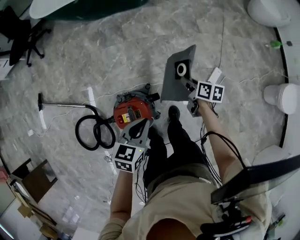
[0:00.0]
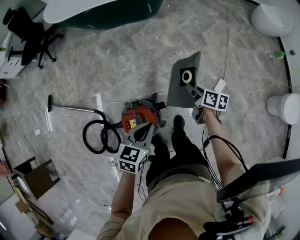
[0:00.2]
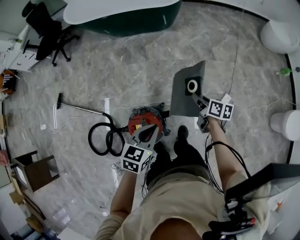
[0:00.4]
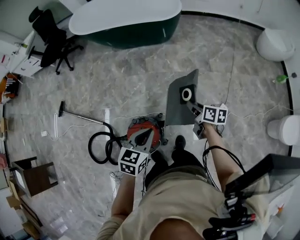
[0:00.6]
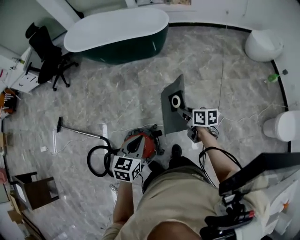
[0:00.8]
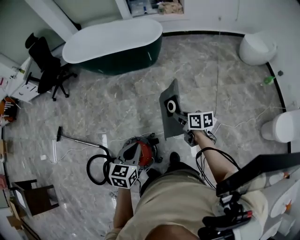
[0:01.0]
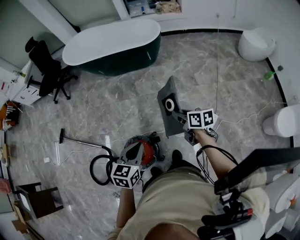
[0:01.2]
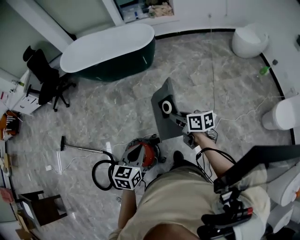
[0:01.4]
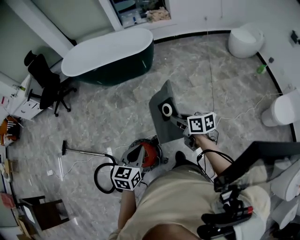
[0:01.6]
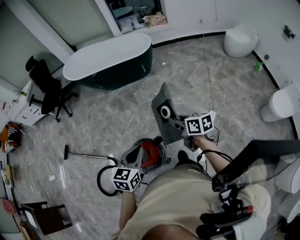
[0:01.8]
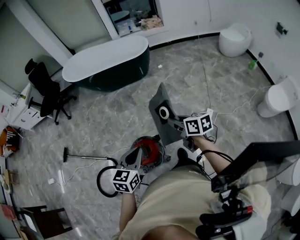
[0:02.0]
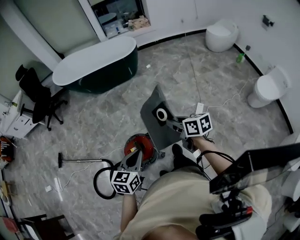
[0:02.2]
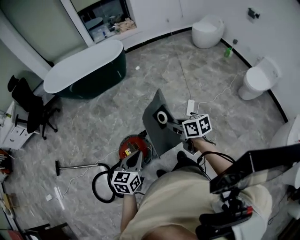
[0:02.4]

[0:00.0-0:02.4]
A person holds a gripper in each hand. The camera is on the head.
0:00.0 to 0:01.2: The two grippers go approximately 20 cm upward. The right gripper rotates approximately 20 degrees.
0:01.2 to 0:02.4: The two grippers go about 25 cm backward.

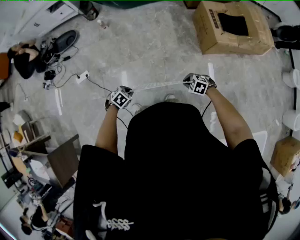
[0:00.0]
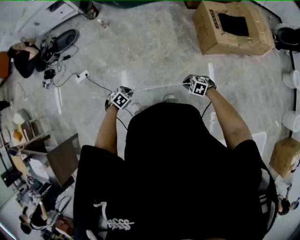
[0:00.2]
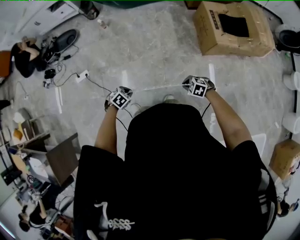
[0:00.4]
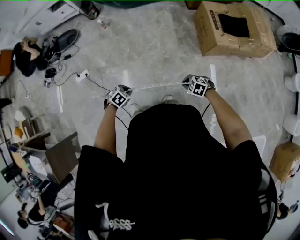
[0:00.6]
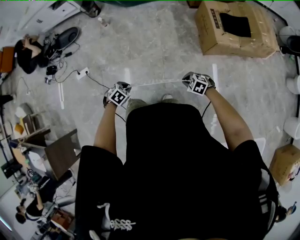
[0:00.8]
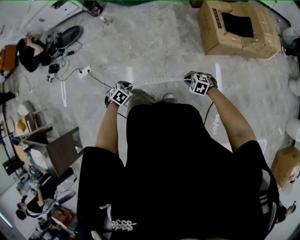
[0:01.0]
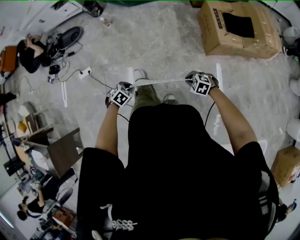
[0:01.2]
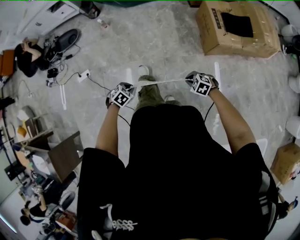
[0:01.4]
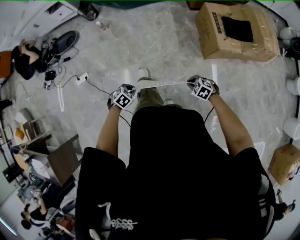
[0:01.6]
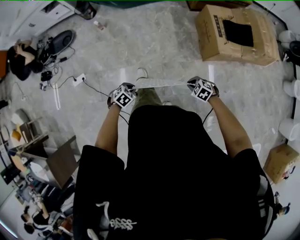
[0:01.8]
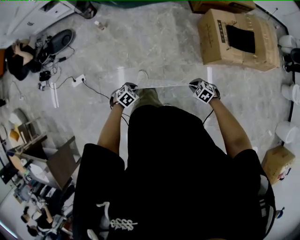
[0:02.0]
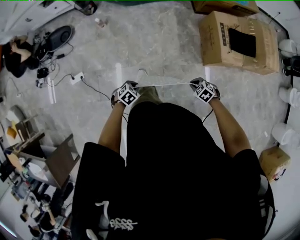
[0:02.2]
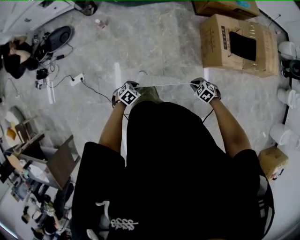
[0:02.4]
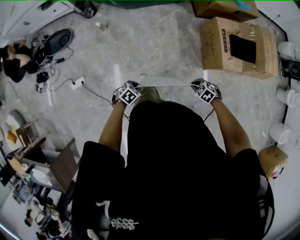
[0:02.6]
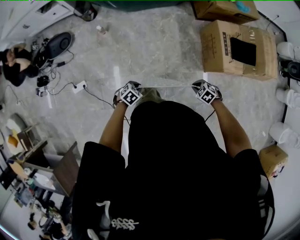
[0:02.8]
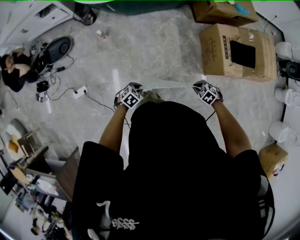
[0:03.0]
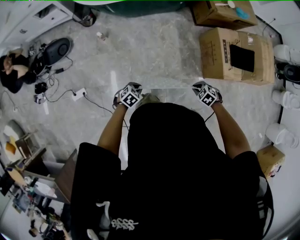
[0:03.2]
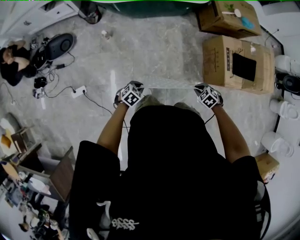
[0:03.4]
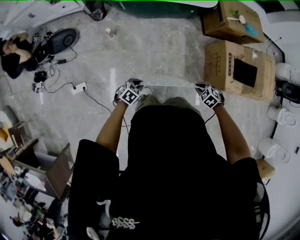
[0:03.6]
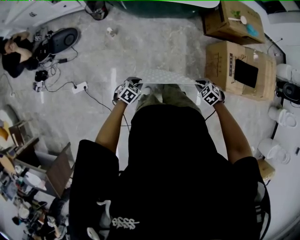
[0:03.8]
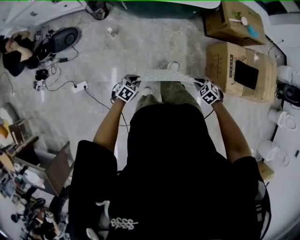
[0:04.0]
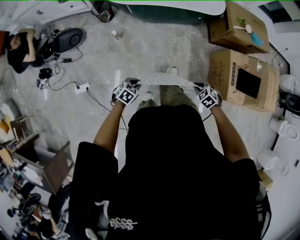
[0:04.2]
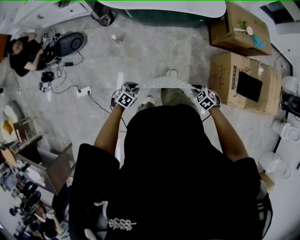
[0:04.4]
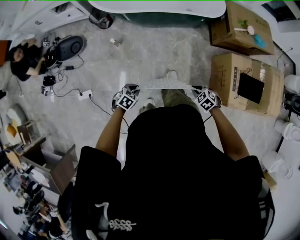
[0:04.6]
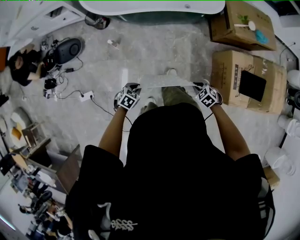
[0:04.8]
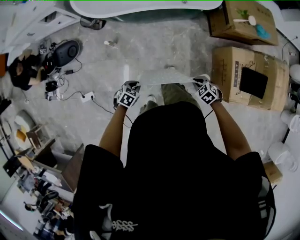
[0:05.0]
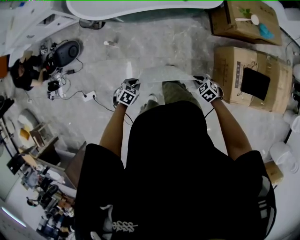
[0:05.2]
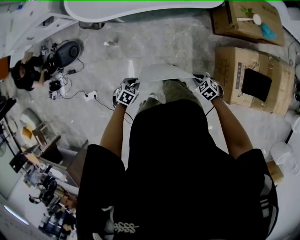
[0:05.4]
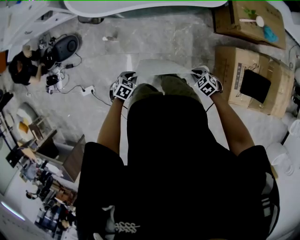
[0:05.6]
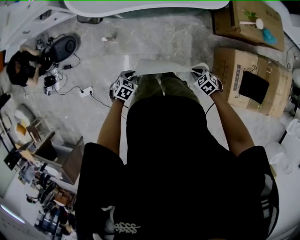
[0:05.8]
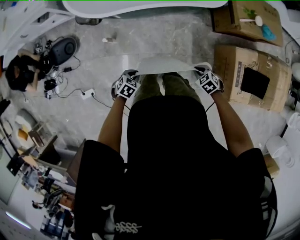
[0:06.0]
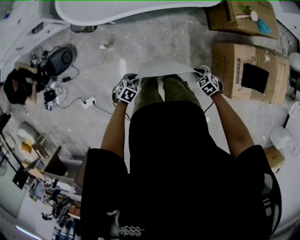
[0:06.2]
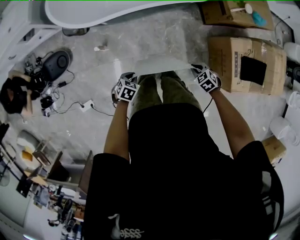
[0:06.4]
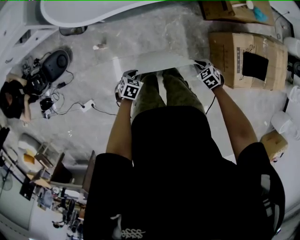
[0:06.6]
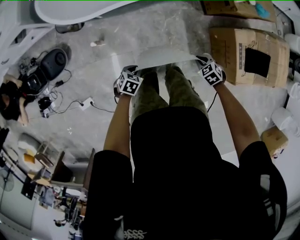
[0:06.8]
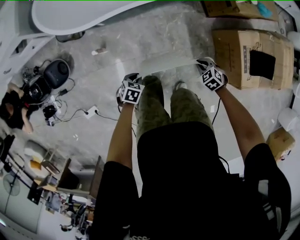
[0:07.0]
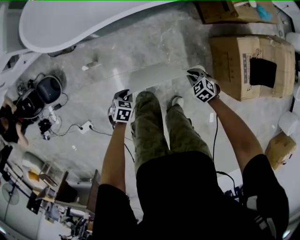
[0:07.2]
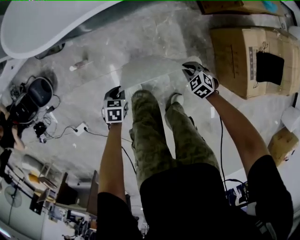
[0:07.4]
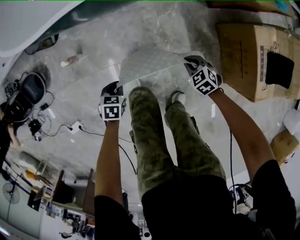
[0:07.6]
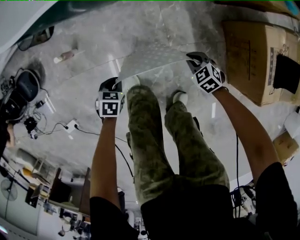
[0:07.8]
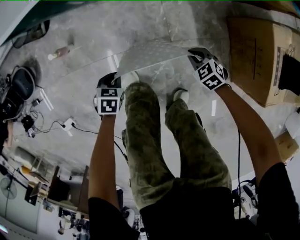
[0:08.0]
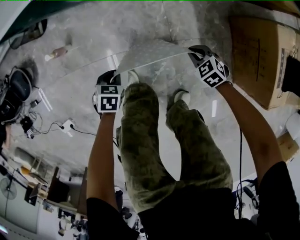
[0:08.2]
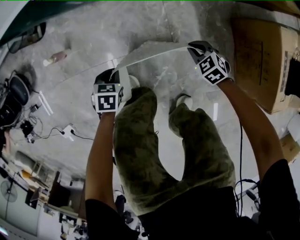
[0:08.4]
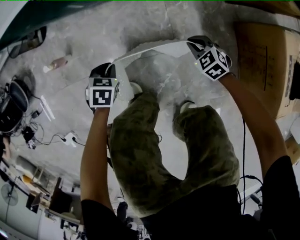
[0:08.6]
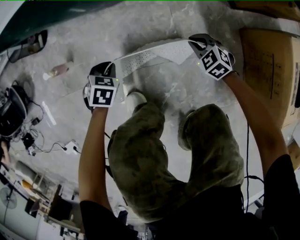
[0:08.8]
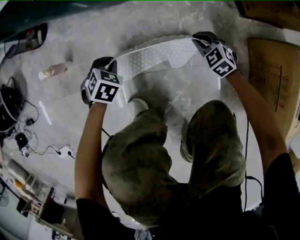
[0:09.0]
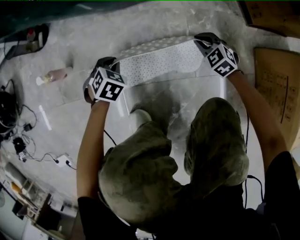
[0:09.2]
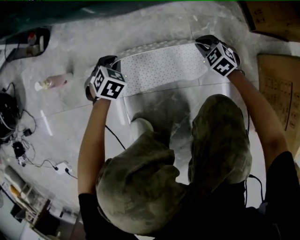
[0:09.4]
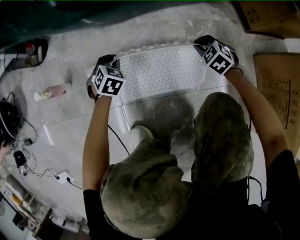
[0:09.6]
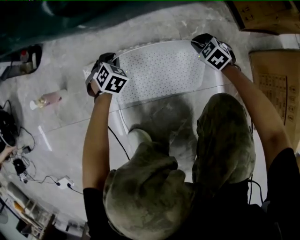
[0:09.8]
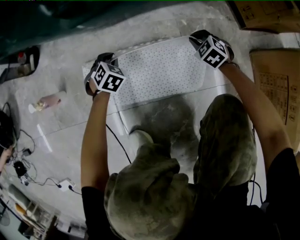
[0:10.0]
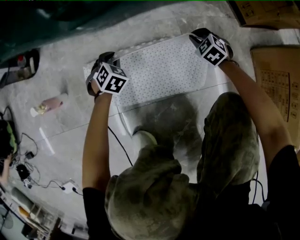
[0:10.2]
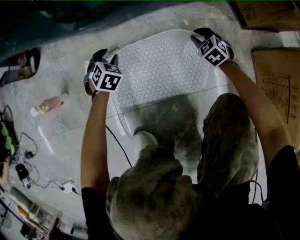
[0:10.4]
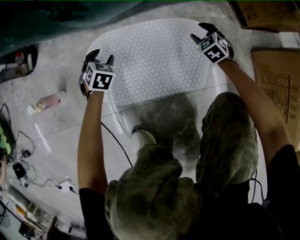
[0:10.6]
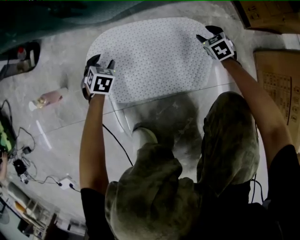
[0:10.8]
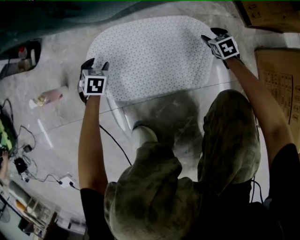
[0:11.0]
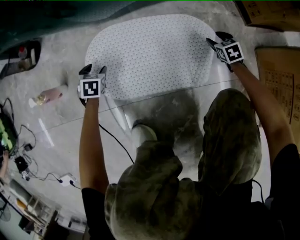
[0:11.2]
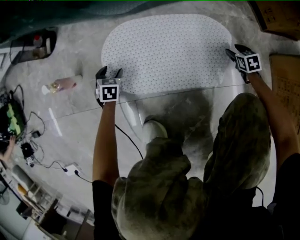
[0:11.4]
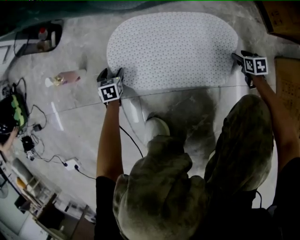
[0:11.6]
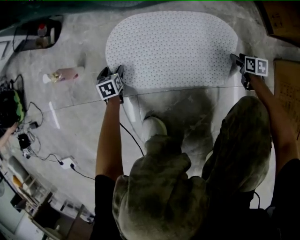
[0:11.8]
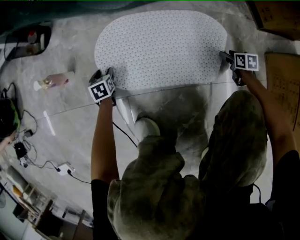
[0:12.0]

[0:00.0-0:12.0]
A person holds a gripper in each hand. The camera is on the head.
0:00.0 to 0:01.6: The left gripper ends up approximately 15 cm from where it was. Meanwhile the right gripper changes place by some 15 cm.
0:01.6 to 0:03.0: The right gripper ends up some 35 cm from where it was. Meanwhile the left gripper changes place by some 35 cm.
0:03.0 to 0:04.4: The right gripper ends up about 20 cm from where it was, while the left gripper shifts by roughly 15 cm.
0:04.4 to 0:06.0: Both grippers travel together forward, some 25 cm.
0:06.0 to 0:07.6: Both grippers move downward, roughly 40 cm.
0:07.6 to 0:09.0: The two grippers go roughly 35 cm downward and forward. The left gripper changes its angle by some 30 degrees.
0:09.0 to 0:10.4: The right gripper heads downward and forward, covering roughly 15 cm. Meanwhile the left gripper moves forward and downward, some 20 cm, and opens.
0:10.4 to 0:12.0: The left gripper travels to the left, backward and downward by approximately 20 cm, and twists about 50 degrees counterclockwise, seen from behind. Meanwhile the right gripper heads to the right, backward and downward, covering roughly 20 cm, twists about 60 degrees clockwise, seen from behind, and opens its fingers.

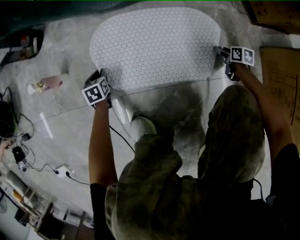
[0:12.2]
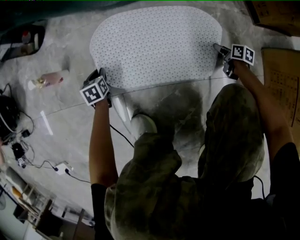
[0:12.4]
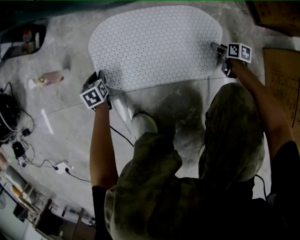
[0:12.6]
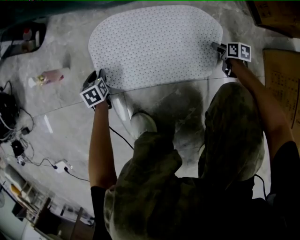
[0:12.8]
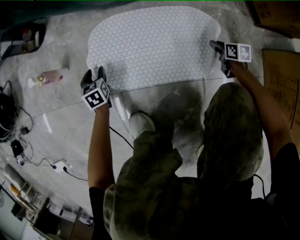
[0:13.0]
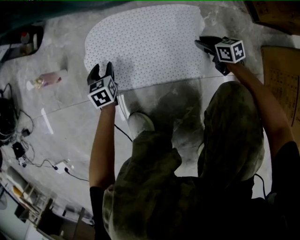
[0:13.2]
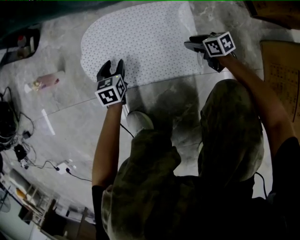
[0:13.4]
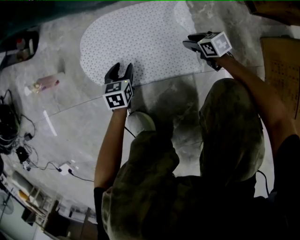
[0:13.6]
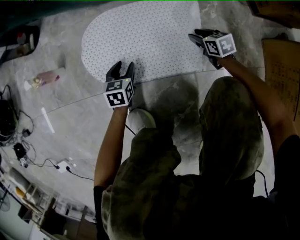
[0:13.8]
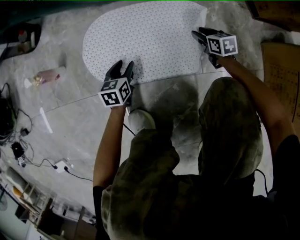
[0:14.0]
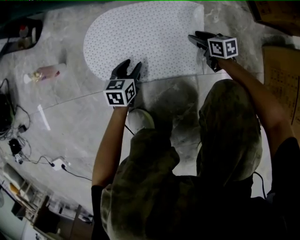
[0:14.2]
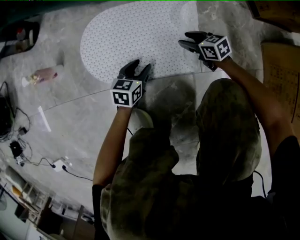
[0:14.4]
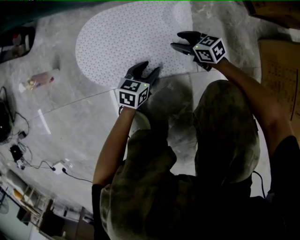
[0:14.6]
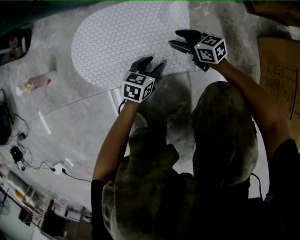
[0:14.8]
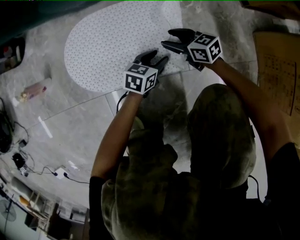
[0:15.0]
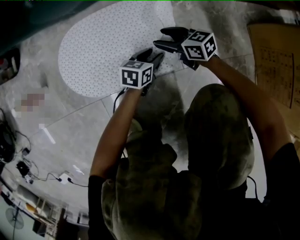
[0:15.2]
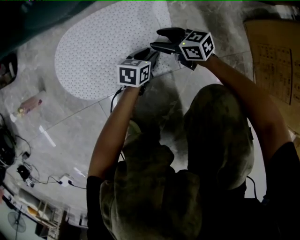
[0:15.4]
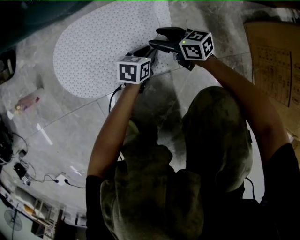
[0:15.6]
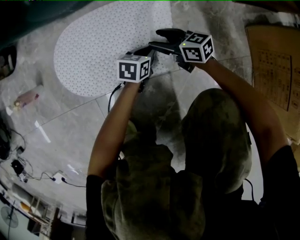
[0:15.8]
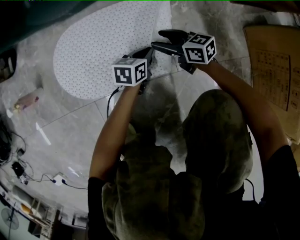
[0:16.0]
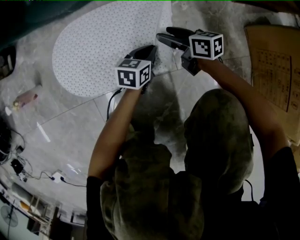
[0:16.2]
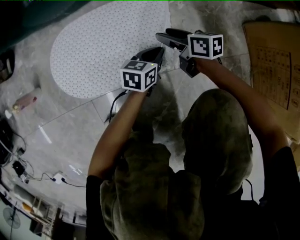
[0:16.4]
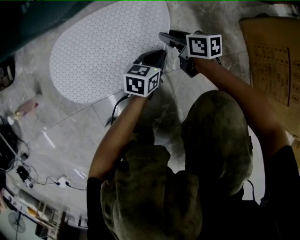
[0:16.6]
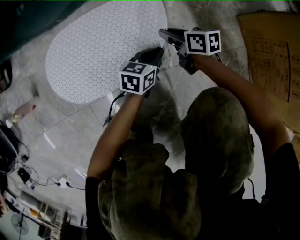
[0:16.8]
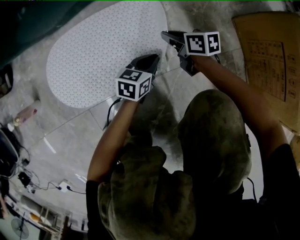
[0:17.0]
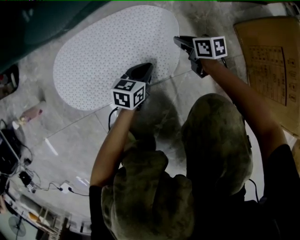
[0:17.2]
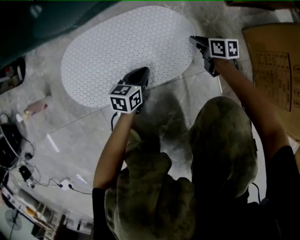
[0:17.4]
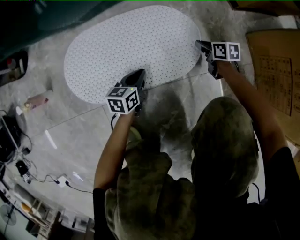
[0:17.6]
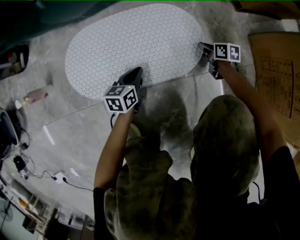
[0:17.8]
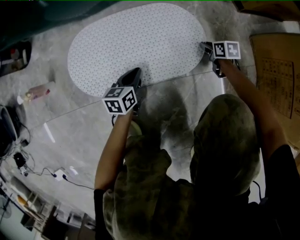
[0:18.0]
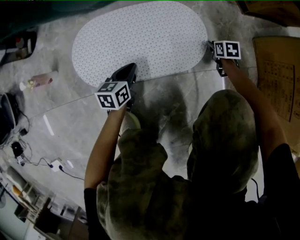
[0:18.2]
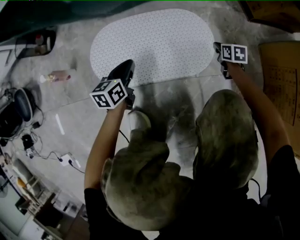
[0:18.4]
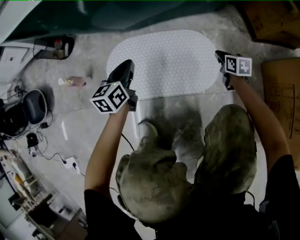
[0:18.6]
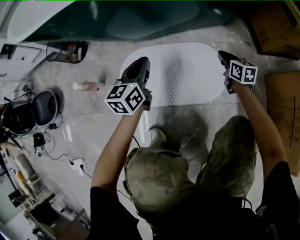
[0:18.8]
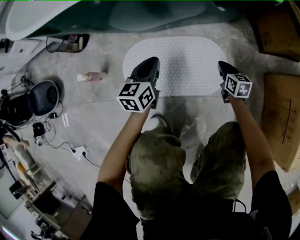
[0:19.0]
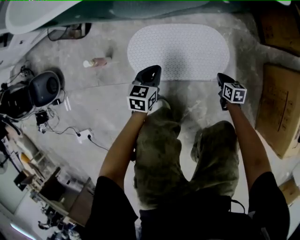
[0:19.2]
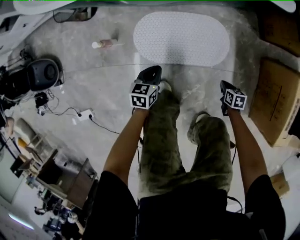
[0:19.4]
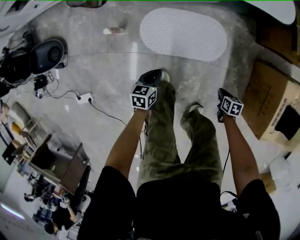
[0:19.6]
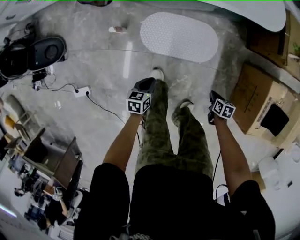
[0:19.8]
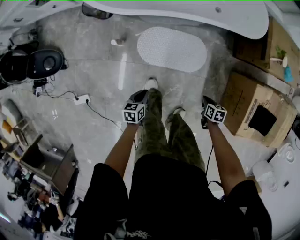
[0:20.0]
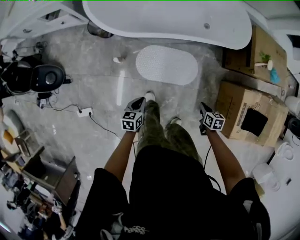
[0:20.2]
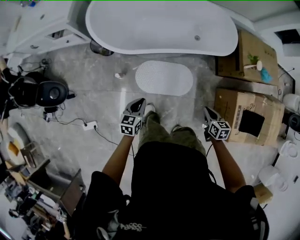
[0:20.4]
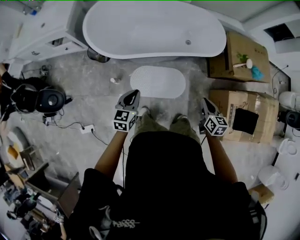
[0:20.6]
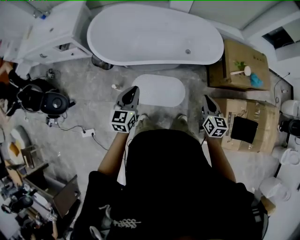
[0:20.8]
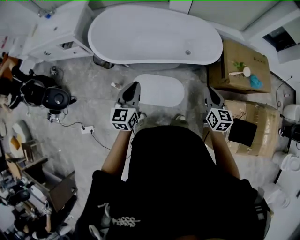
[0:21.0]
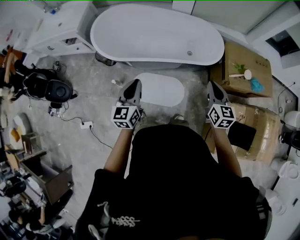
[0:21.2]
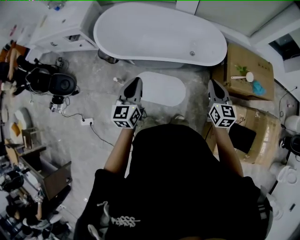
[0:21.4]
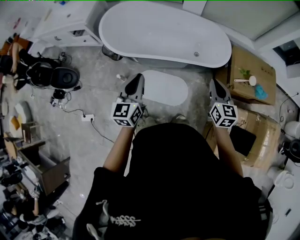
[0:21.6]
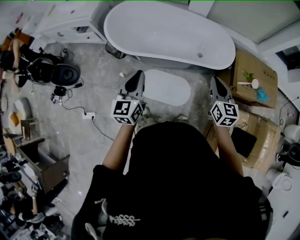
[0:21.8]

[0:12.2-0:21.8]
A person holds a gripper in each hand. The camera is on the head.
0:12.2 to 0:13.8: The right gripper heads to the left and forward, covering approximately 15 cm, turns by roughly 30 degrees, and closes its fingers; the left gripper goes about 15 cm to the right and backward, and opens up.
0:13.8 to 0:15.4: The right gripper ends up about 5 cm from where it was, and swivels some 30 degrees; the left gripper moves to the right, roughly 25 cm, and changes its angle by about 30 degrees.
0:15.4 to 0:17.0: The right gripper travels to the right by roughly 10 cm, swivels about 30 degrees, and closes its fingers. Meanwhile the left gripper is displaced to the right and upward by about 10 cm, and closes its fingers.
0:17.0 to 0:18.6: The right gripper shifts some 10 cm upward, while the left gripper moves to the left and upward, roughly 35 cm, and changes its angle by some 40 degrees.
0:18.6 to 0:20.2: The two grippers go roughly 50 cm upward. The left gripper turns by some 20 degrees.
0:20.2 to 0:21.8: The right gripper shifts some 40 cm upward and forward, and angles its fingers upward, by some 40 degrees. The left gripper goes roughly 40 cm upward, and tips its fingers upward by roughly 30 degrees.
